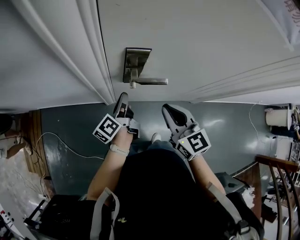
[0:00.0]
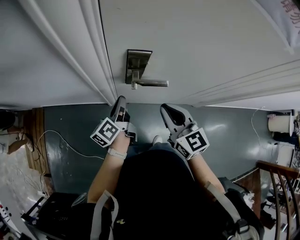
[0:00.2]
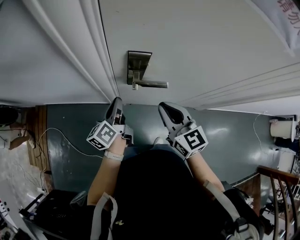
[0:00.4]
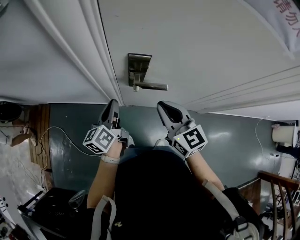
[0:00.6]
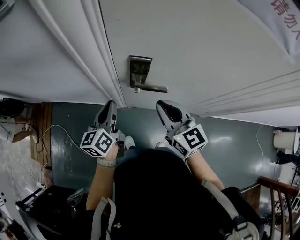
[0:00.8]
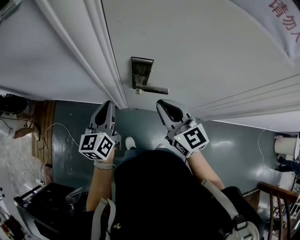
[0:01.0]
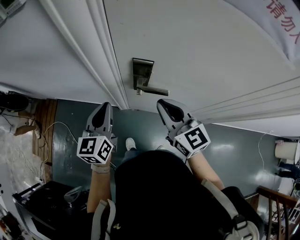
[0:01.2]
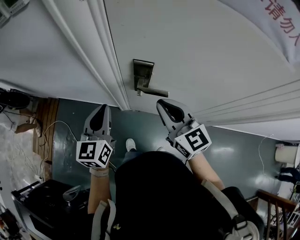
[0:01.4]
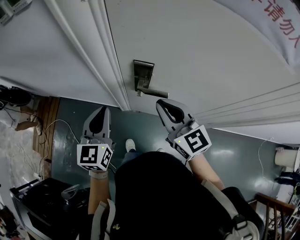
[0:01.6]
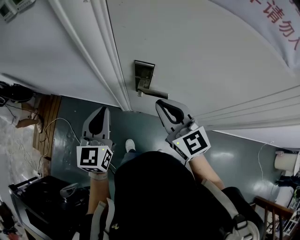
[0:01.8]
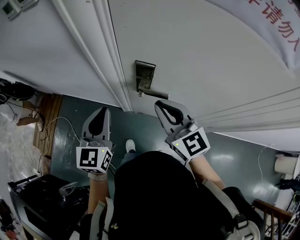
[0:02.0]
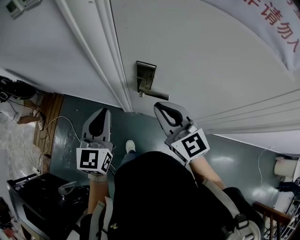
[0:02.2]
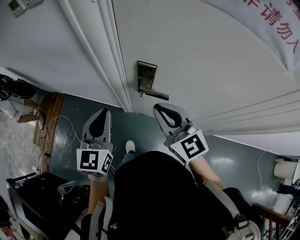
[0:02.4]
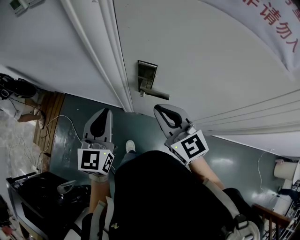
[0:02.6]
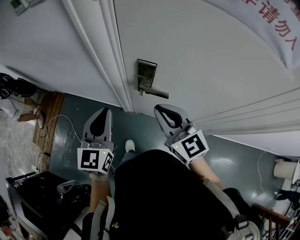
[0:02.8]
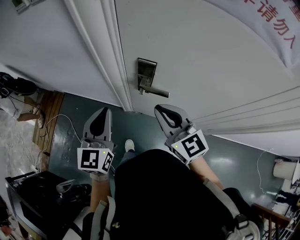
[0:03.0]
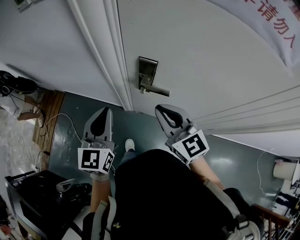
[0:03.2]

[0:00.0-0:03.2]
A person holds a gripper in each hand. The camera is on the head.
0:00.0 to 0:01.6: The right gripper travels upward by some 10 cm, and changes its angle by about 20 degrees; the left gripper moves upward, backward and to the left, roughly 20 cm, and rolls clockwise, seen from behind, by some 70 degrees.
0:01.6 to 0:03.2: The left gripper changes place by roughly 5 cm.

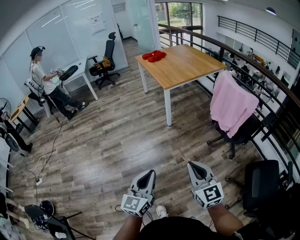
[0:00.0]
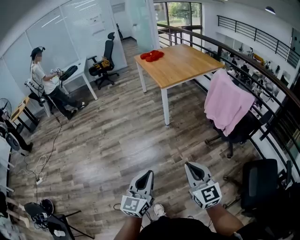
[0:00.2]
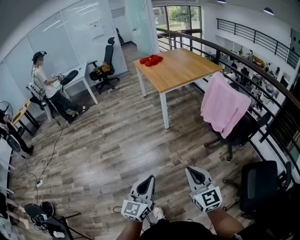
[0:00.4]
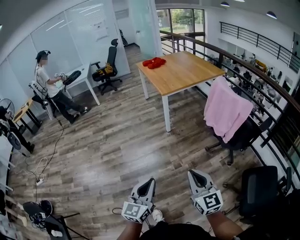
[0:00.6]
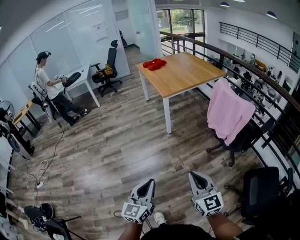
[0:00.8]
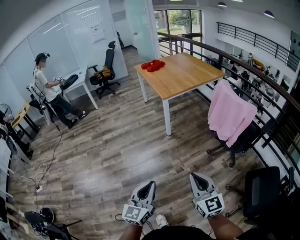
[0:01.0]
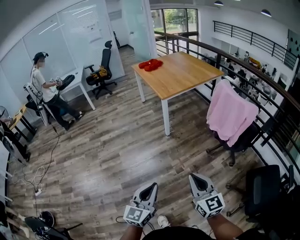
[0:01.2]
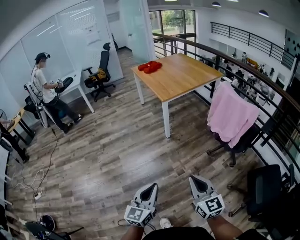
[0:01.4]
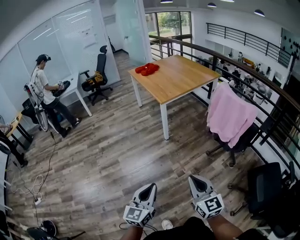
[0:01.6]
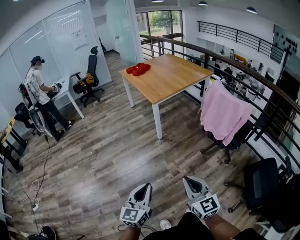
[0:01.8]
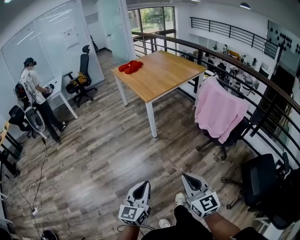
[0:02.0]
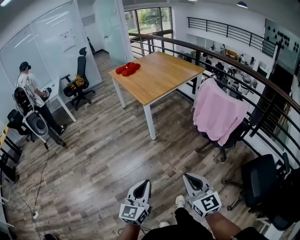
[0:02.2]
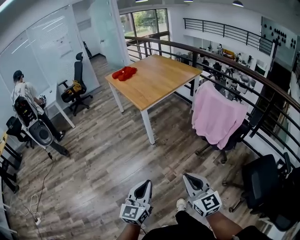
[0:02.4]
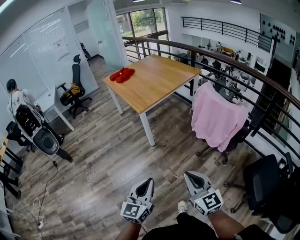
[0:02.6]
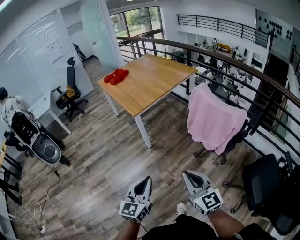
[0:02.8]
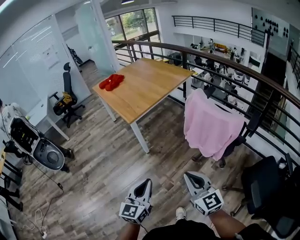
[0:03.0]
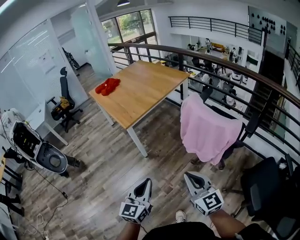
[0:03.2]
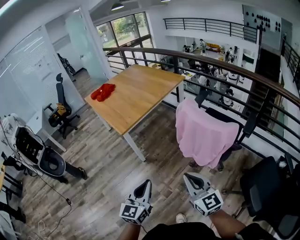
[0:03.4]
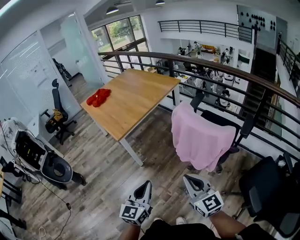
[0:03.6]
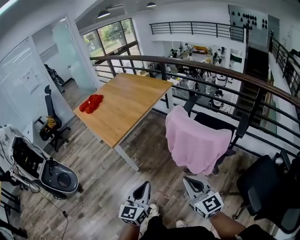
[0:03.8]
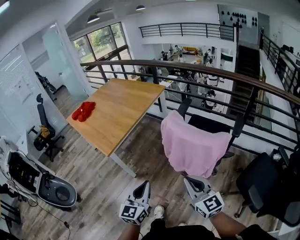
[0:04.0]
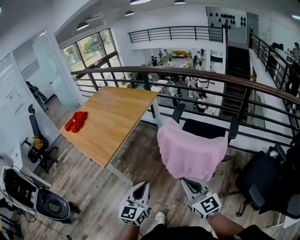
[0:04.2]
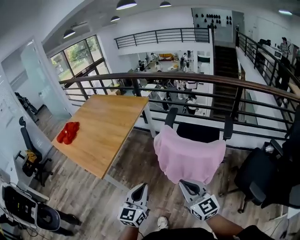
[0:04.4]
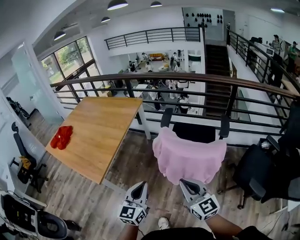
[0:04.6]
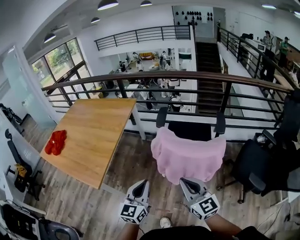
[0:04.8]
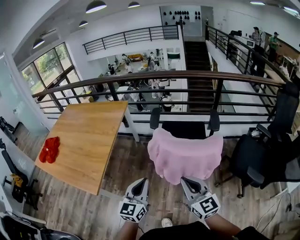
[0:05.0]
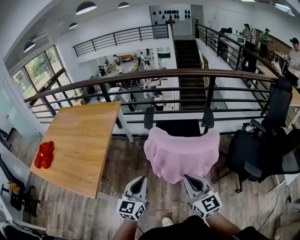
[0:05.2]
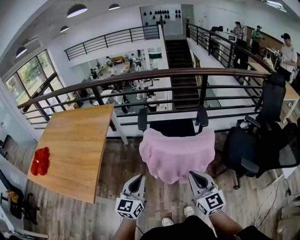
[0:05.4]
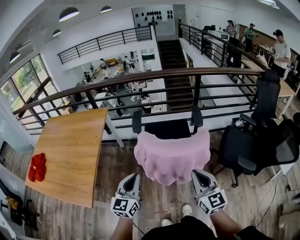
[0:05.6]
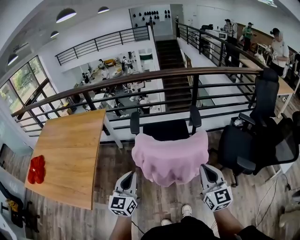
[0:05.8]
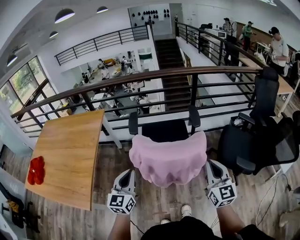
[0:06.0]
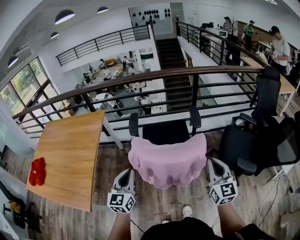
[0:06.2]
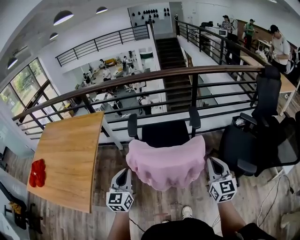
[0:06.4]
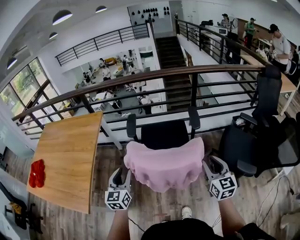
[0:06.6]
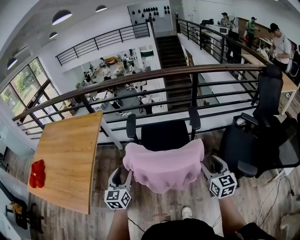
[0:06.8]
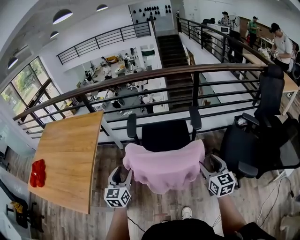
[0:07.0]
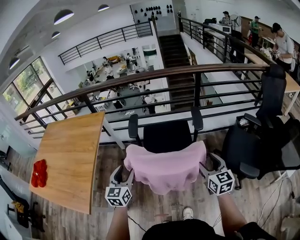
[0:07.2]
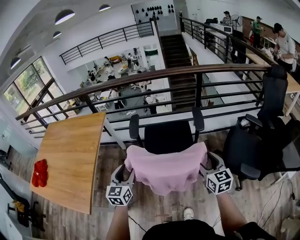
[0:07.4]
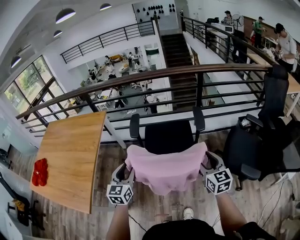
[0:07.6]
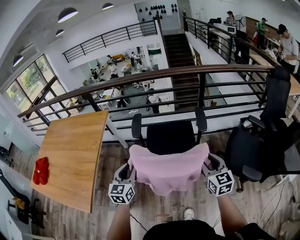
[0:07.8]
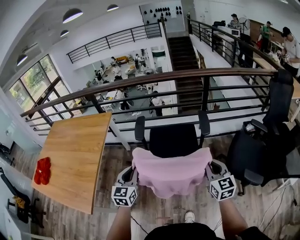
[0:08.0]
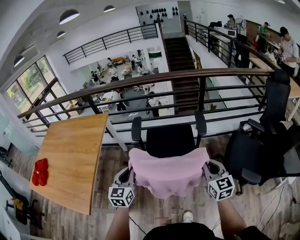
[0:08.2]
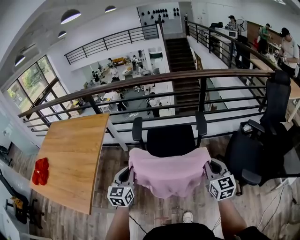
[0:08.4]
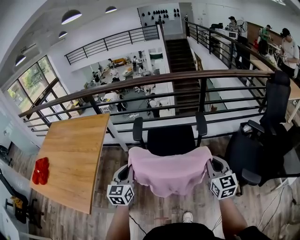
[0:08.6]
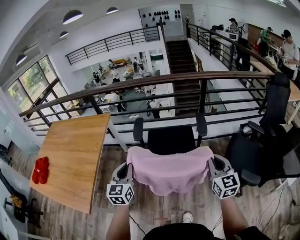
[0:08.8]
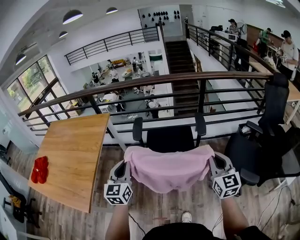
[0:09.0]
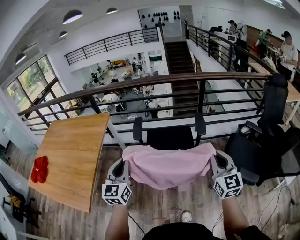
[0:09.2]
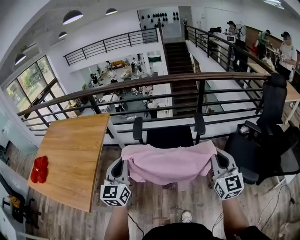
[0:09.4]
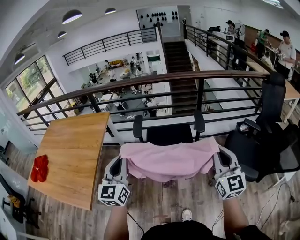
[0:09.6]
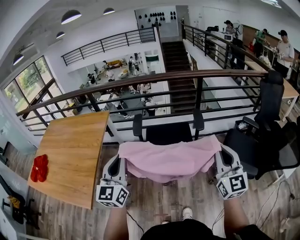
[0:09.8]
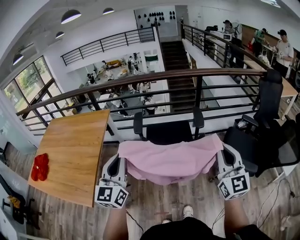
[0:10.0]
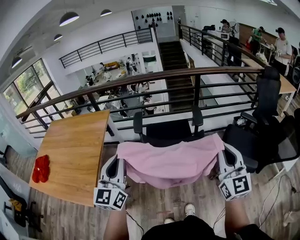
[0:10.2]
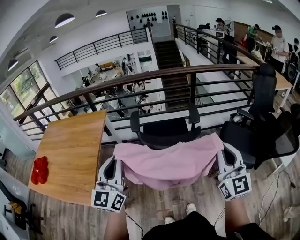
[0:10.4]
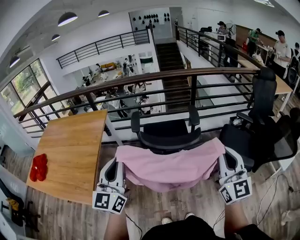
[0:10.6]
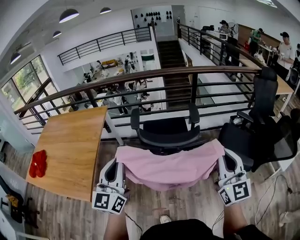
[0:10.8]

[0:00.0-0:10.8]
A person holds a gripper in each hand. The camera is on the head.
0:00.0 to 0:01.6: The right gripper shifts by about 5 cm; the left gripper is displaced forward by approximately 5 cm.
0:01.6 to 0:03.0: Both grippers travel together forward and to the right, approximately 25 cm.
0:03.0 to 0:04.6: The right gripper ends up roughly 25 cm from where it was, and changes its angle by roughly 30 degrees. Meanwhile the left gripper moves approximately 35 cm, and rotates about 30 degrees.
0:04.6 to 0:06.2: The left gripper moves some 15 cm. Meanwhile the right gripper ends up roughly 20 cm from where it was, and turns by roughly 40 degrees.
0:06.2 to 0:07.8: The left gripper shifts some 10 cm forward, and opens up, while the right gripper goes approximately 15 cm forward and downward, and opens.
0:07.8 to 0:09.2: The two grippers go approximately 10 cm upward. The right gripper closes its fingers, while the left gripper closes up.
0:09.2 to 0:10.8: Both grippers travel together backward and upward, approximately 20 cm.

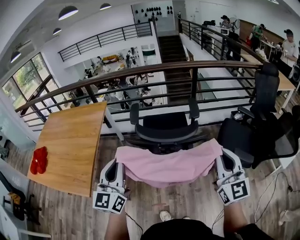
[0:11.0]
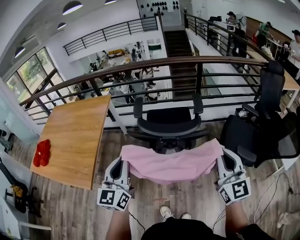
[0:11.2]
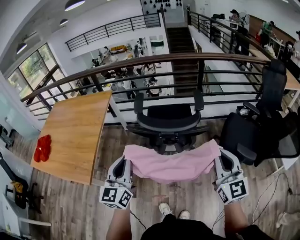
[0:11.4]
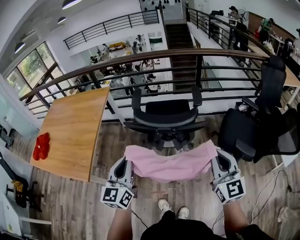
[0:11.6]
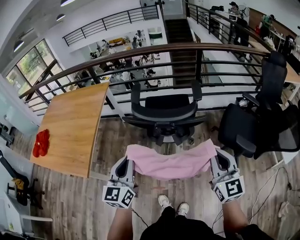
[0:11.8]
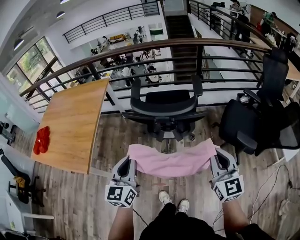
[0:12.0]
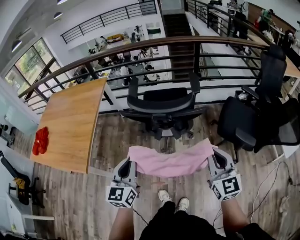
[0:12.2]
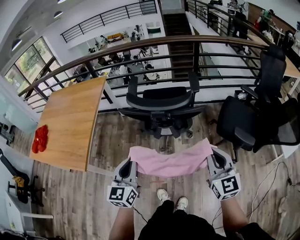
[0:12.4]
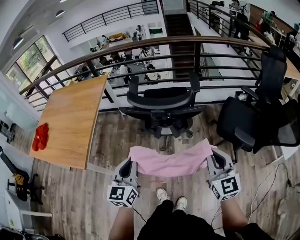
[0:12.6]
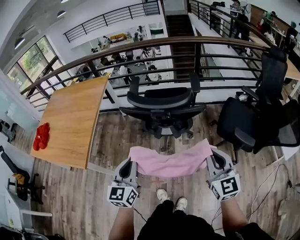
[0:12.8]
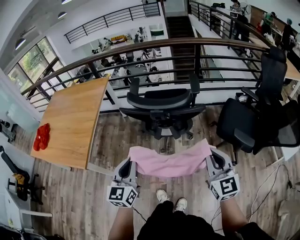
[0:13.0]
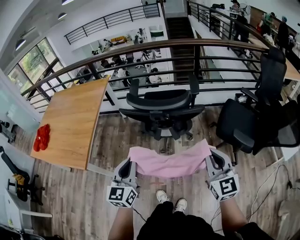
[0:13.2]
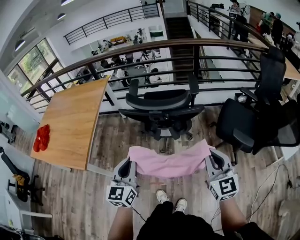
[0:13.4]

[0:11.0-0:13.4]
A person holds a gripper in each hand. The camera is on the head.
0:11.0 to 0:12.2: The right gripper shifts roughly 15 cm downward, while the left gripper heads downward, to the right and backward, covering some 15 cm.
0:12.2 to 0:13.4: The grippers move only a little.

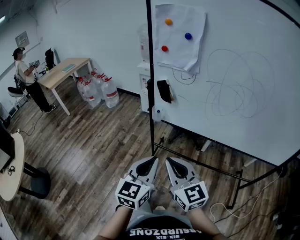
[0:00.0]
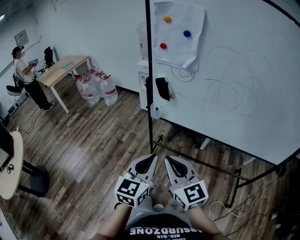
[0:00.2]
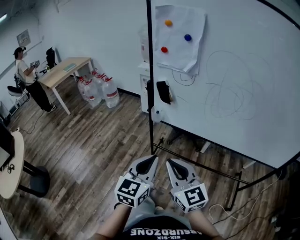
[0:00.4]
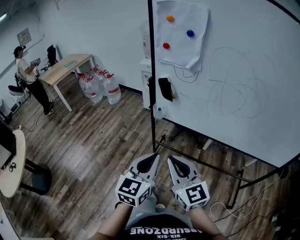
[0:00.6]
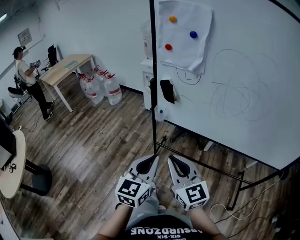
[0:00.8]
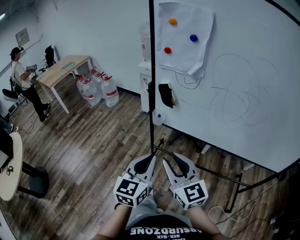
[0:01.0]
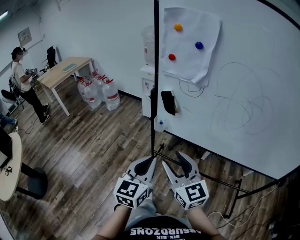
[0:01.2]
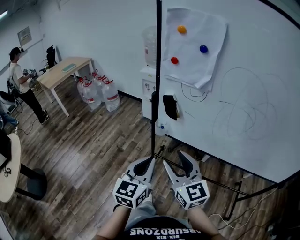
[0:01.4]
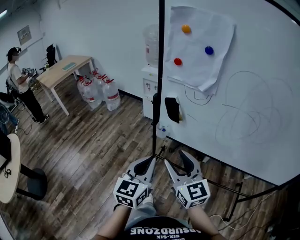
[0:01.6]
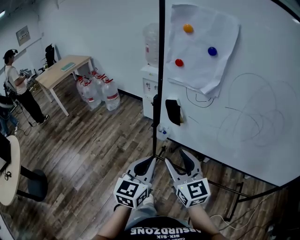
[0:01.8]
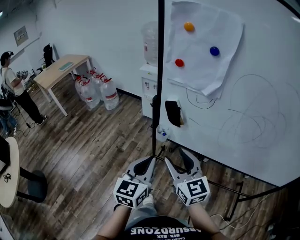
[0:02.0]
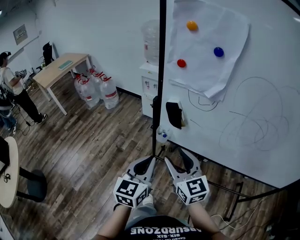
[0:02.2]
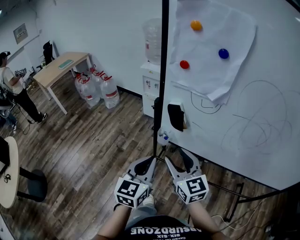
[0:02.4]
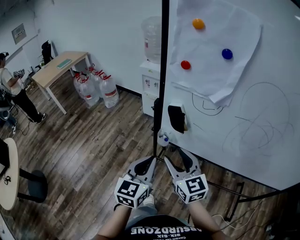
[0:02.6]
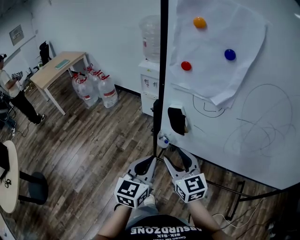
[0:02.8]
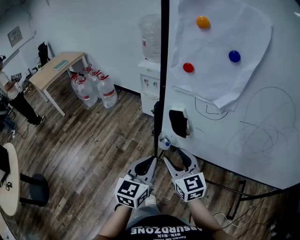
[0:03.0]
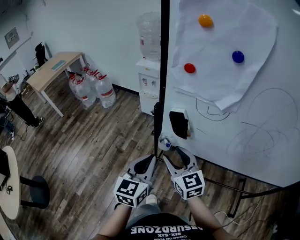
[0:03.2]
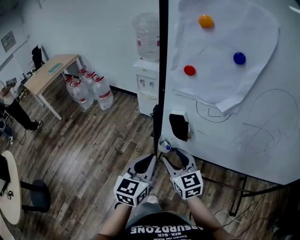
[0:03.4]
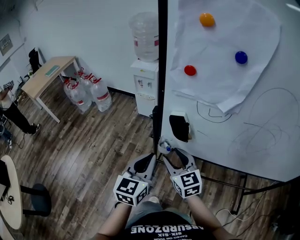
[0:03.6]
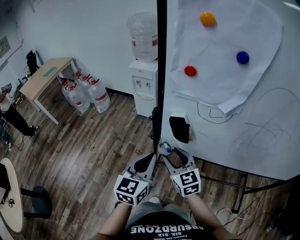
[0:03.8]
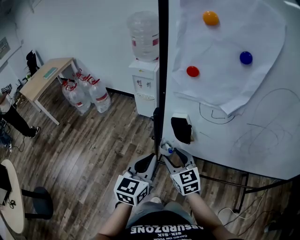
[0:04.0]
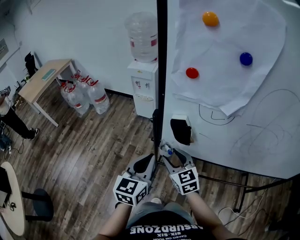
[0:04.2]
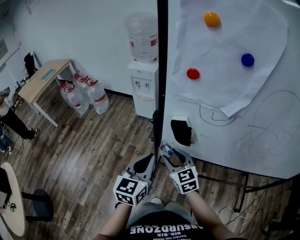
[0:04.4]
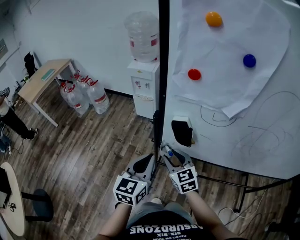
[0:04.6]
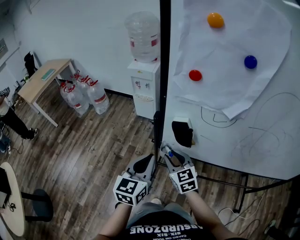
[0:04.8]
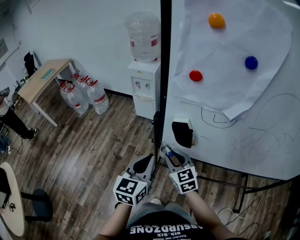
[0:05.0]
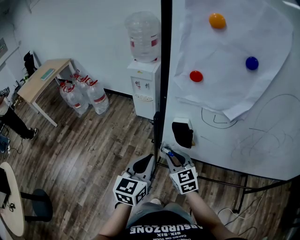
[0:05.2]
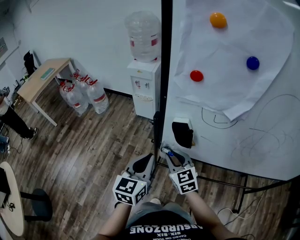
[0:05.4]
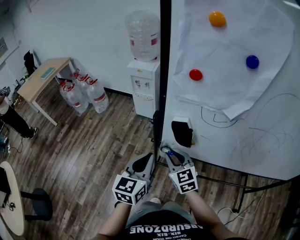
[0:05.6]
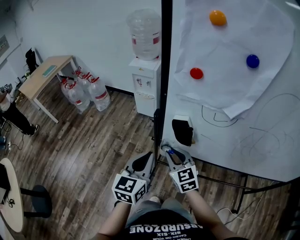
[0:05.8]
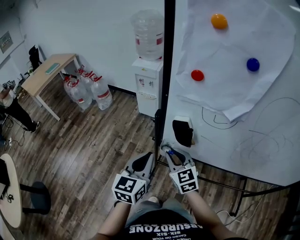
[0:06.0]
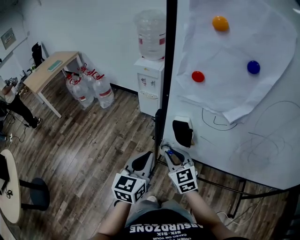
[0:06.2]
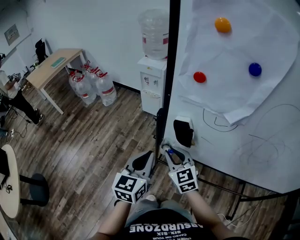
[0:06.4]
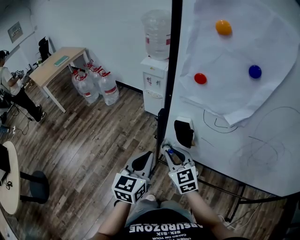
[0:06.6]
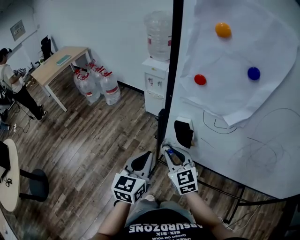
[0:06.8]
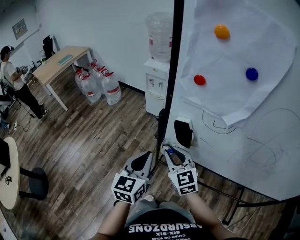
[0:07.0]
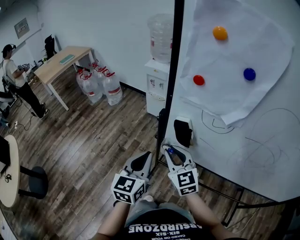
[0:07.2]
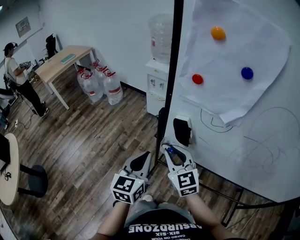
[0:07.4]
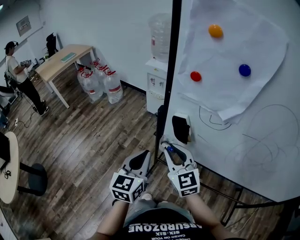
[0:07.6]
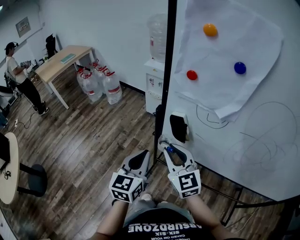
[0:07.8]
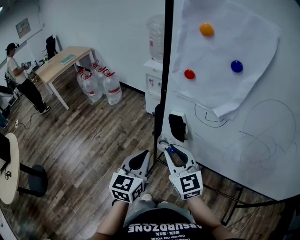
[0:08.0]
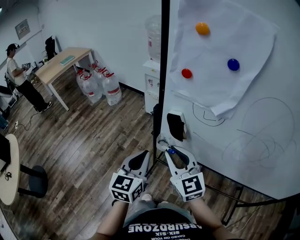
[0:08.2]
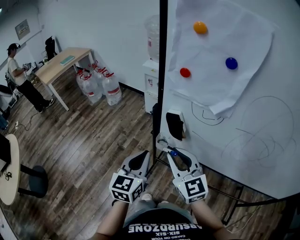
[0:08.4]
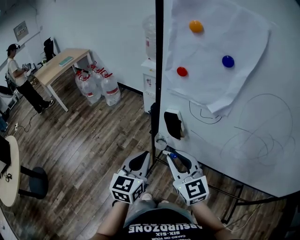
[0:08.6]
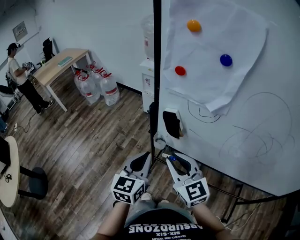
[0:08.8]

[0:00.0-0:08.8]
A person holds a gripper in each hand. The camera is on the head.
0:00.0 to 0:01.4: The grippers both shift forward by approximately 10 cm. The right gripper opens up.
0:01.4 to 0:03.0: The left gripper travels forward by some 15 cm. Meanwhile the right gripper goes some 20 cm forward and downward.
0:03.0 to 0:04.4: The right gripper shifts approximately 10 cm downward and forward. The left gripper goes some 5 cm forward.
0:04.4 to 0:05.8: The right gripper closes up.
0:05.8 to 0:07.4: The right gripper moves upward, some 10 cm; the left gripper moves approximately 5 cm.
0:07.4 to 0:08.8: The right gripper shifts approximately 10 cm backward.
